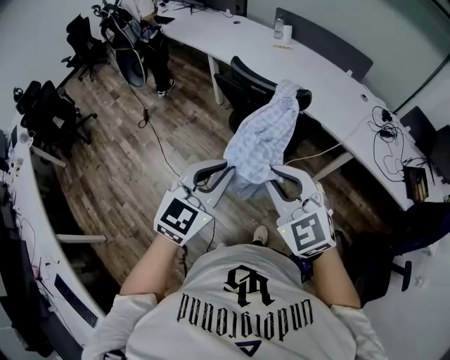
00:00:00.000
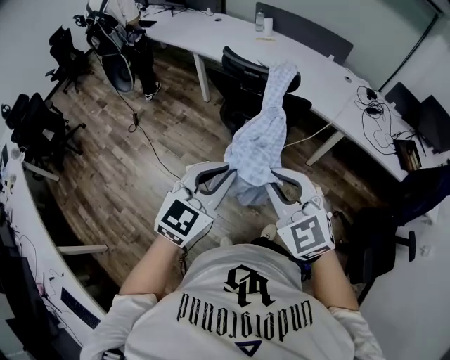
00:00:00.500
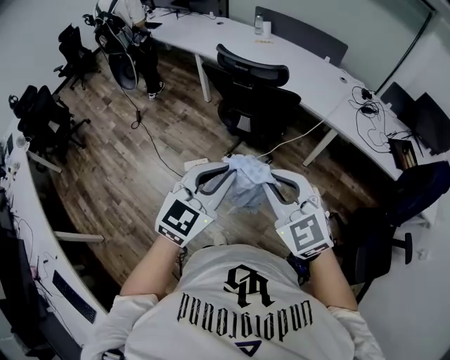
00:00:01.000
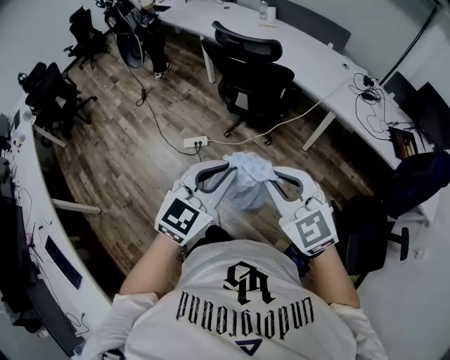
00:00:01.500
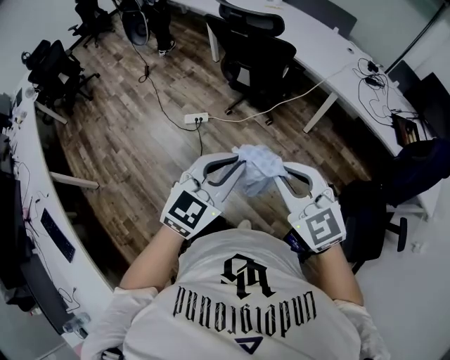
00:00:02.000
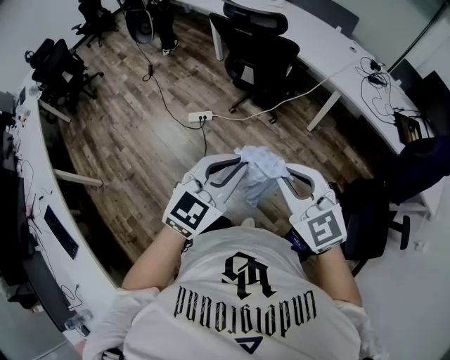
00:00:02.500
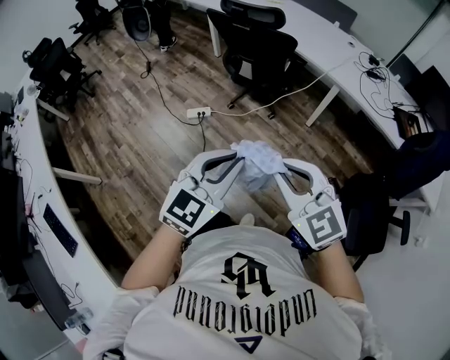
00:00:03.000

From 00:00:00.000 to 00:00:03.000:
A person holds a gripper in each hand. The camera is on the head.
From 00:00:00.000 to 00:00:01.500: The grippers both shift backward and to the right by some 25 cm.
From 00:00:01.500 to 00:00:03.000: Both grippers move backward, roughly 10 cm.

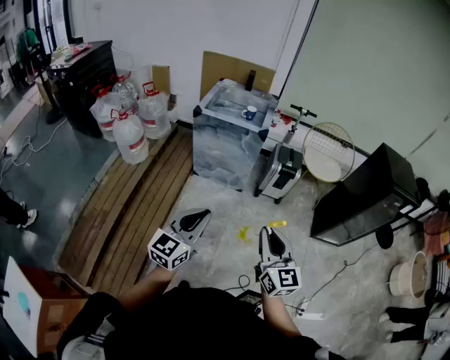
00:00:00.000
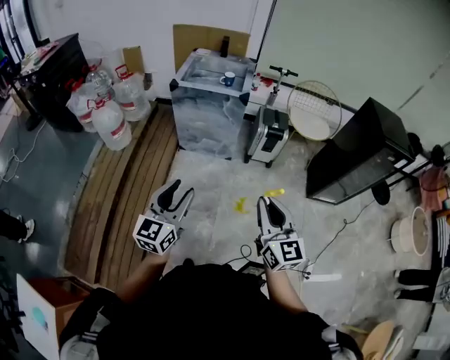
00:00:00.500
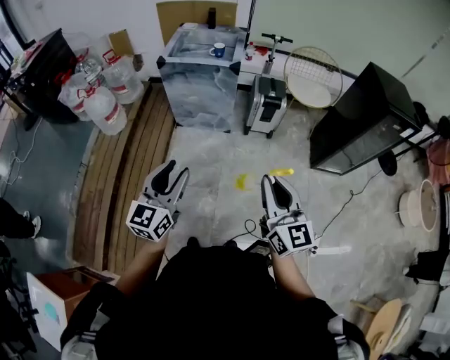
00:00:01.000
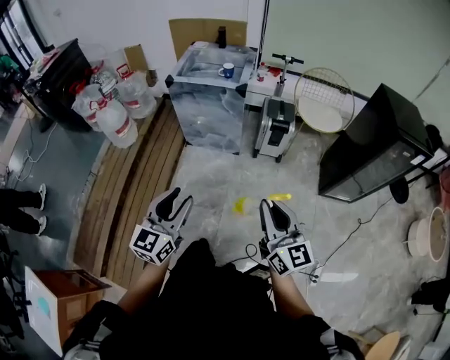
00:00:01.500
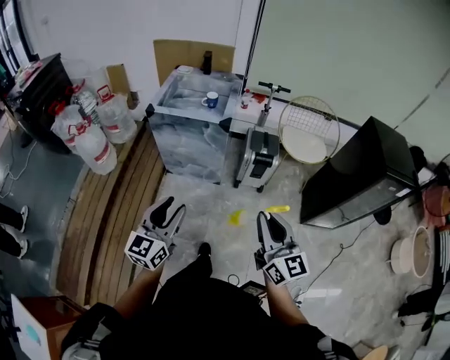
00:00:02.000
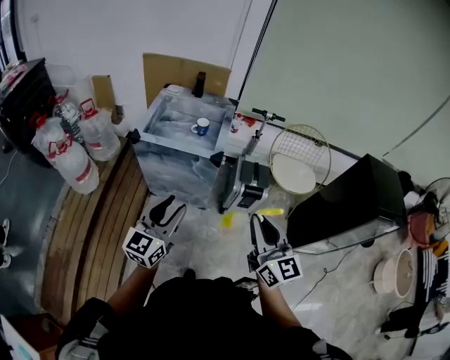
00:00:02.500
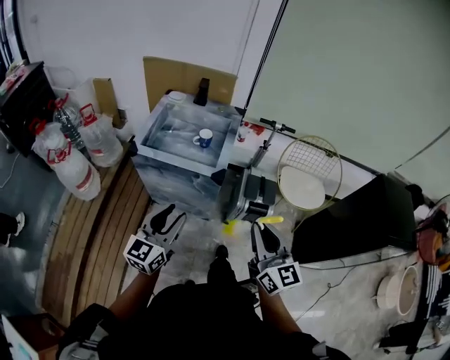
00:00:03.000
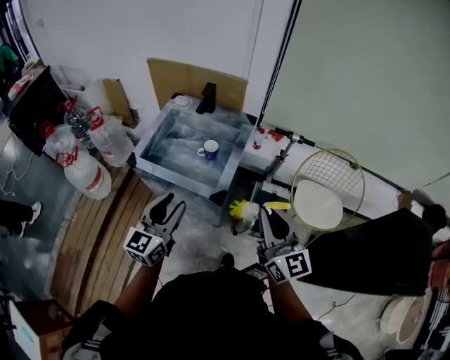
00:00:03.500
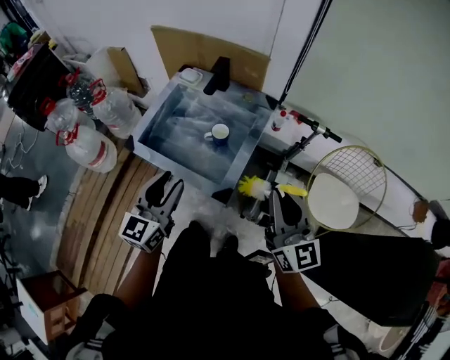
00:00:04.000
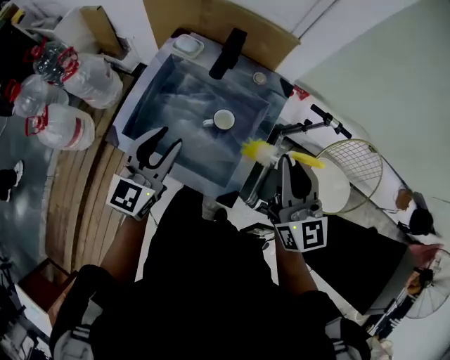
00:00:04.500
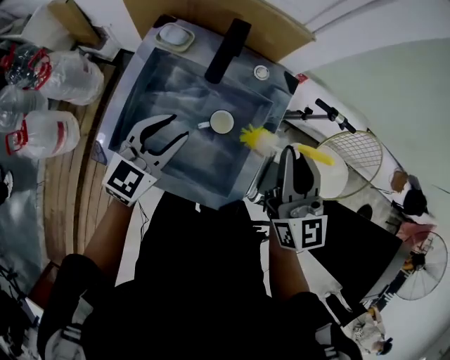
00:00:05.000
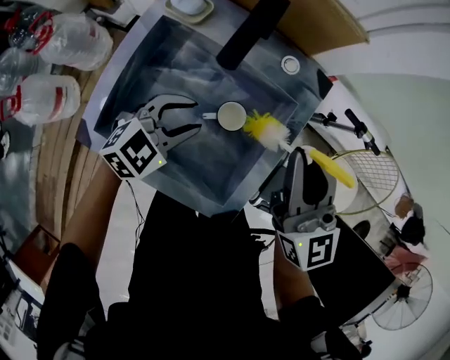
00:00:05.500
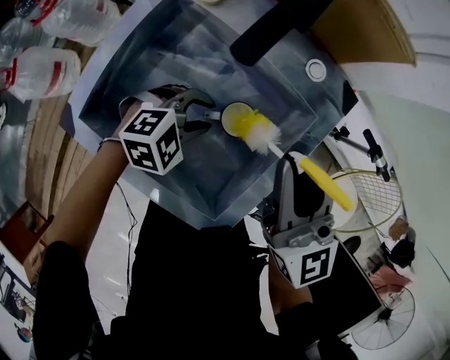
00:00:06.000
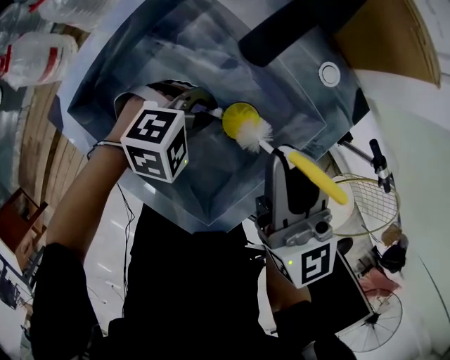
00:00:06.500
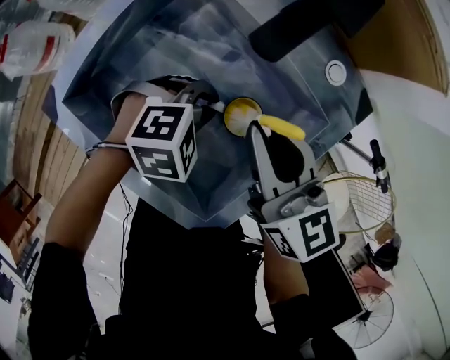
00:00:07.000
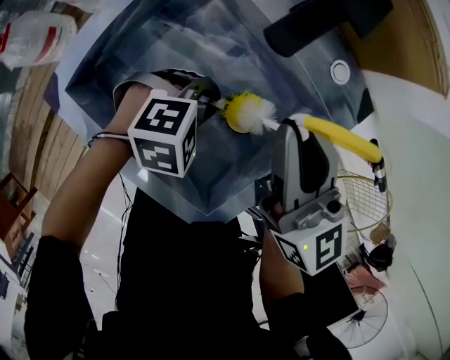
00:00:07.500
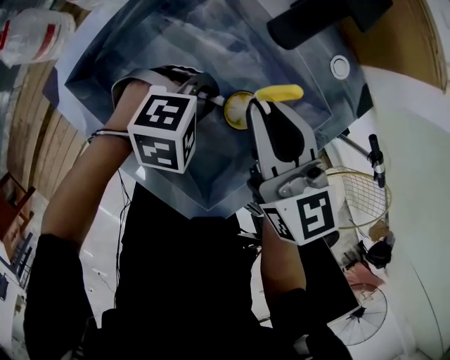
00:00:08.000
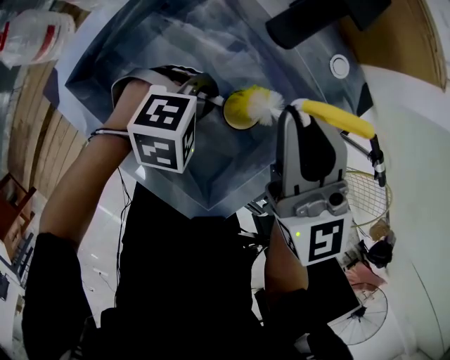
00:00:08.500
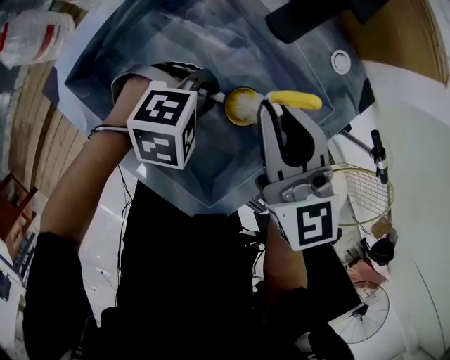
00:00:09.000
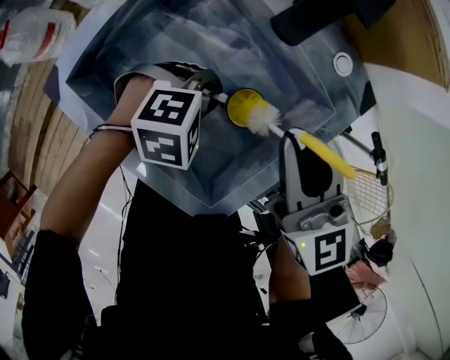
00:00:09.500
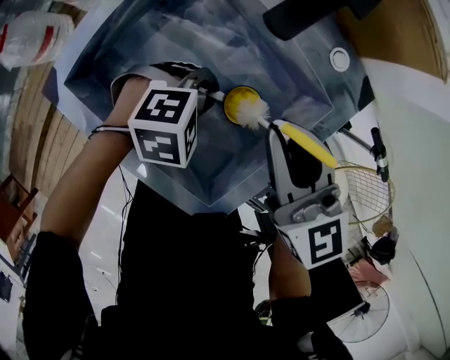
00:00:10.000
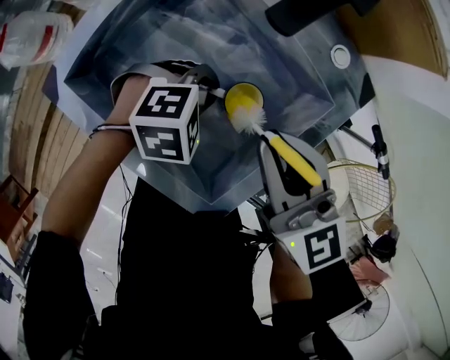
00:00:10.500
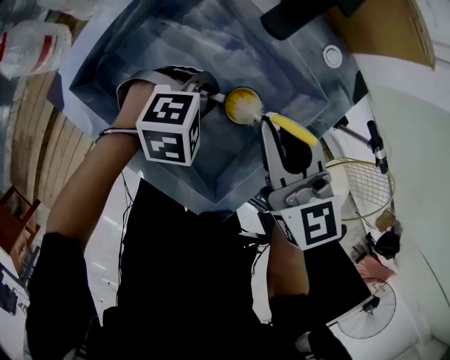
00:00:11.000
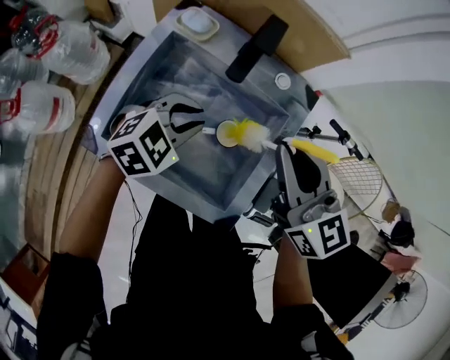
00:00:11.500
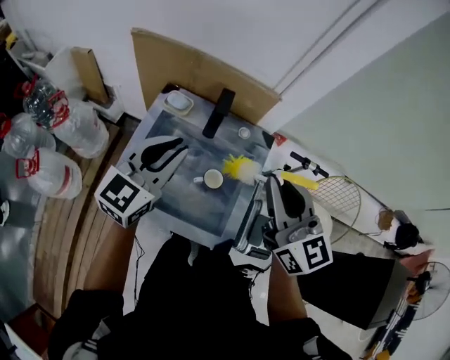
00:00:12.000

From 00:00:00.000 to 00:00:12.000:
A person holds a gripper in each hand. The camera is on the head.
From 00:00:00.000 to 00:00:02.000: The right gripper goes approximately 20 cm forward and to the right. Meanwhile the left gripper shifts some 20 cm forward, and opens.
From 00:00:02.000 to 00:00:04.000: The pair of grippers is taken forward, roughly 60 cm.
From 00:00:04.000 to 00:00:06.000: The right gripper heads forward, to the left and downward, covering some 35 cm, while the left gripper travels downward and forward by about 40 cm, and tips its fingers downward by about 40 degrees.
From 00:00:06.000 to 00:00:08.000: The right gripper goes up and down, approximately 10 cm each way, reversing 2 times, and swivels about 20 degrees. Meanwhile the left gripper closes.
From 00:00:10.000 to 00:00:12.000: Both grippers move upward, approximately 30 cm. The right gripper rotates approximately 30 degrees. The left gripper tips its fingers upward by some 50 degrees.

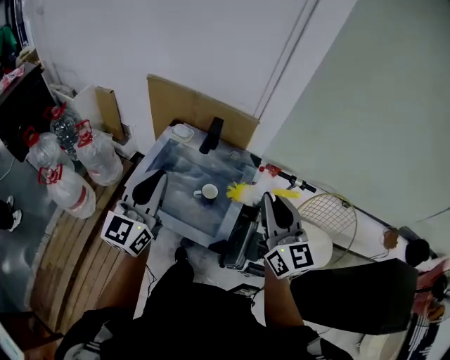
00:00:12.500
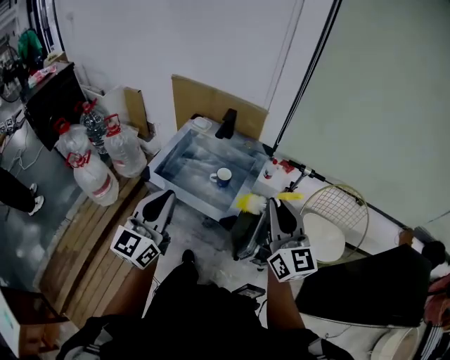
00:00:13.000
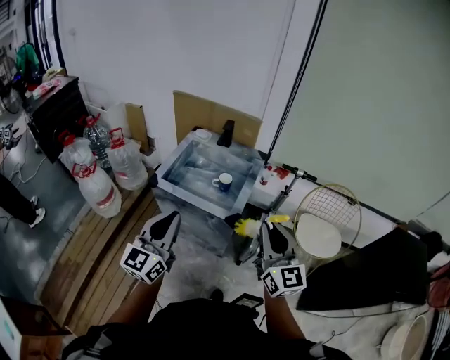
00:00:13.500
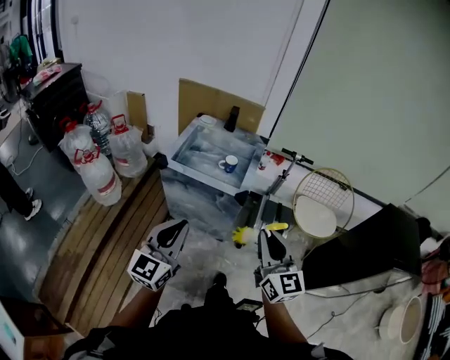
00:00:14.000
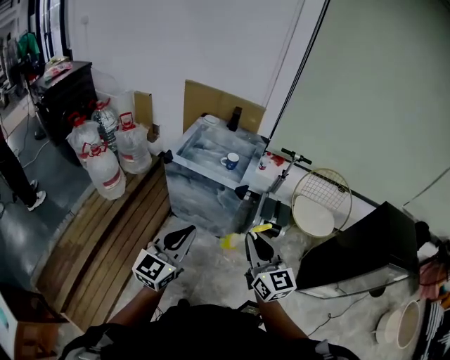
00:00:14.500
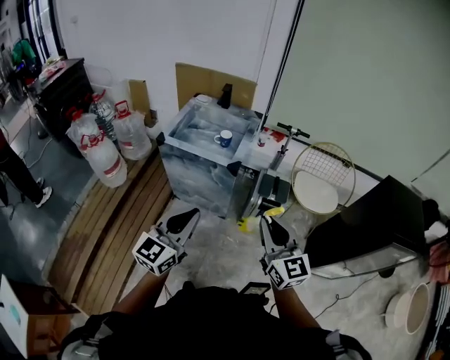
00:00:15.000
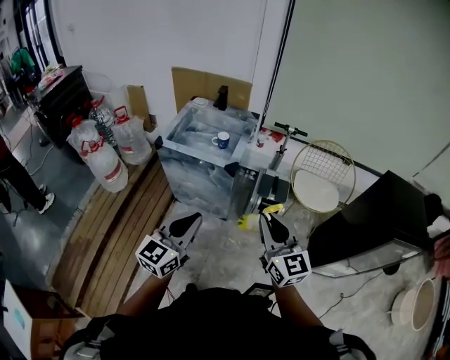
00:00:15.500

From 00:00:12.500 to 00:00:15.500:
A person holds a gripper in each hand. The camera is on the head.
From 00:00:12.500 to 00:00:14.000: The pair of grippers is taken backward, roughly 40 cm.
From 00:00:14.000 to 00:00:15.500: Both grippers move to the right and backward, about 15 cm.

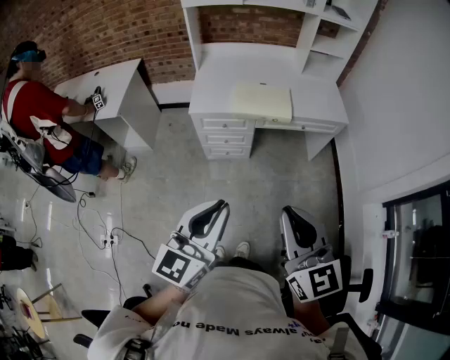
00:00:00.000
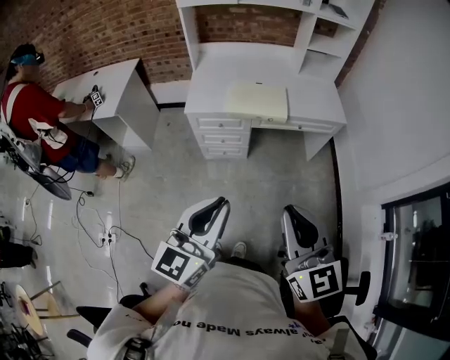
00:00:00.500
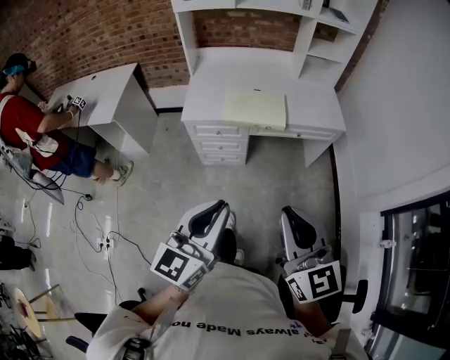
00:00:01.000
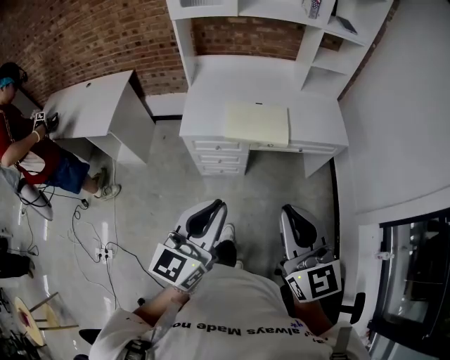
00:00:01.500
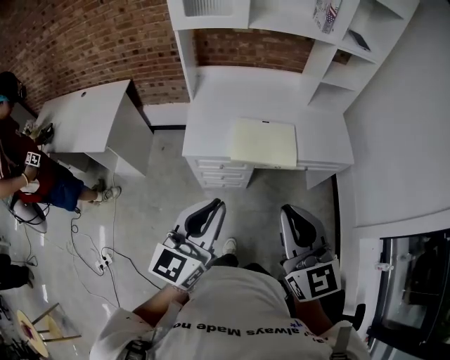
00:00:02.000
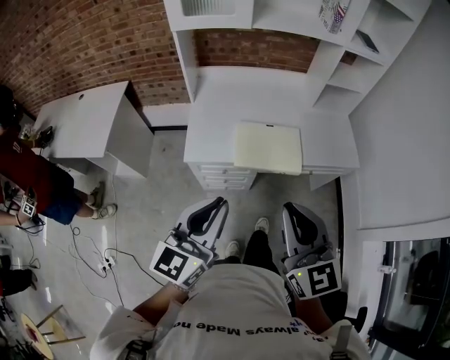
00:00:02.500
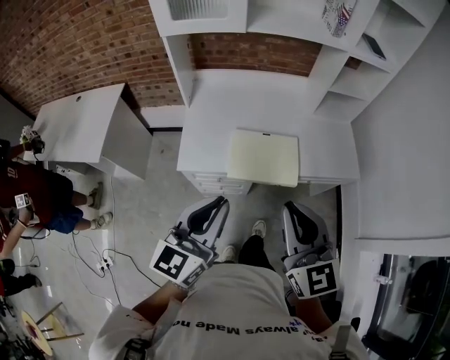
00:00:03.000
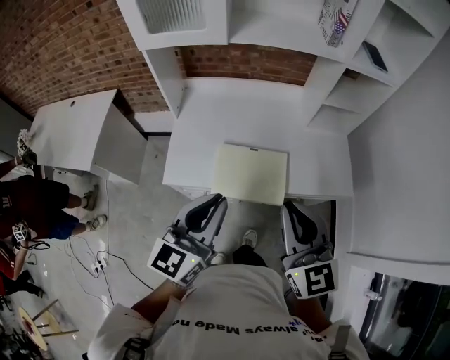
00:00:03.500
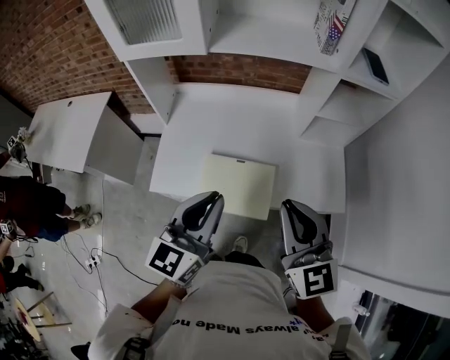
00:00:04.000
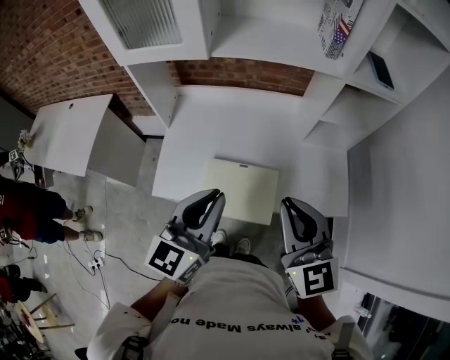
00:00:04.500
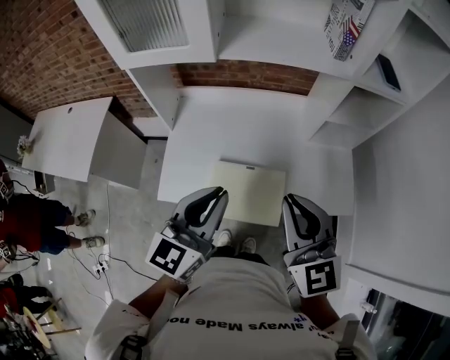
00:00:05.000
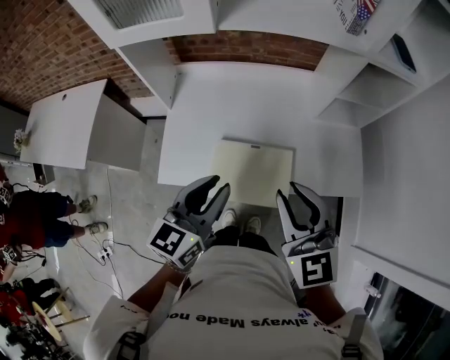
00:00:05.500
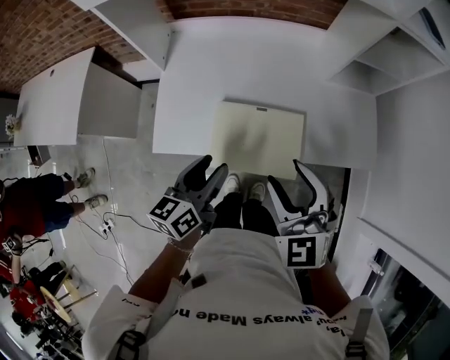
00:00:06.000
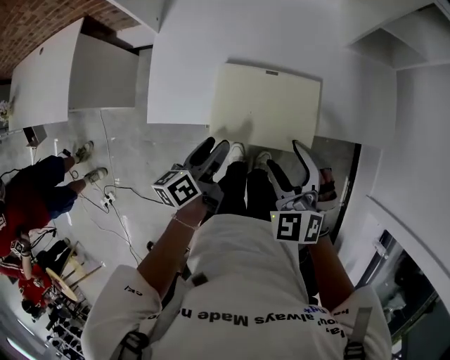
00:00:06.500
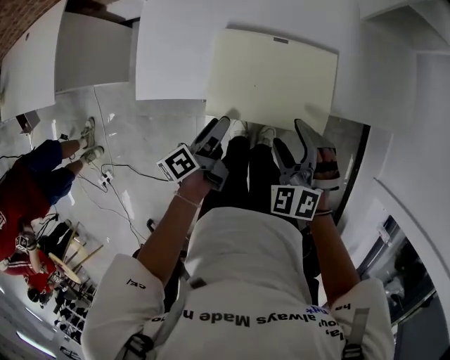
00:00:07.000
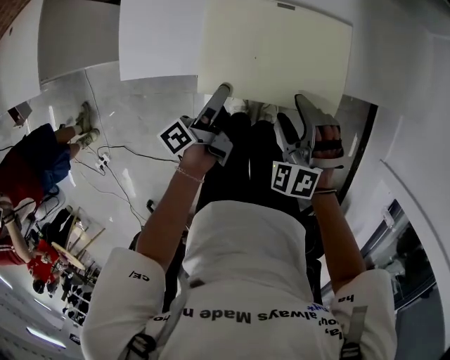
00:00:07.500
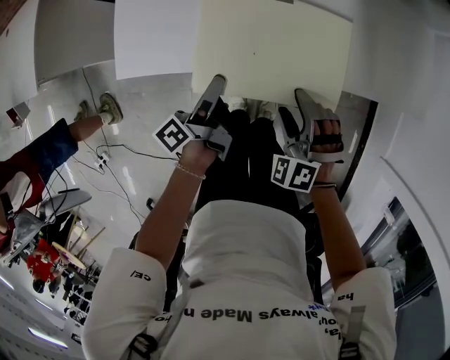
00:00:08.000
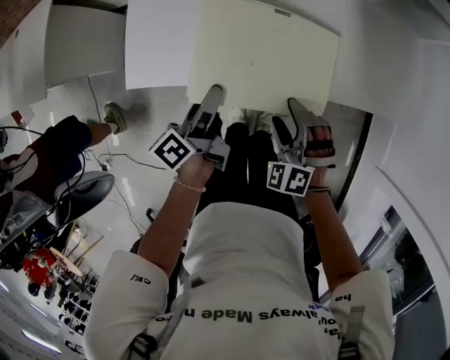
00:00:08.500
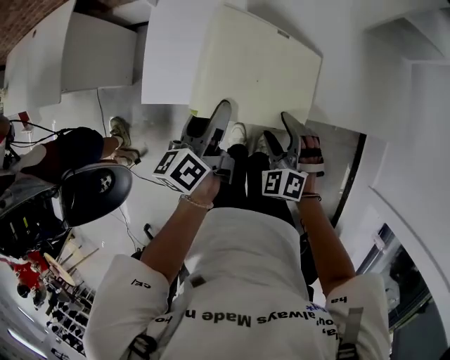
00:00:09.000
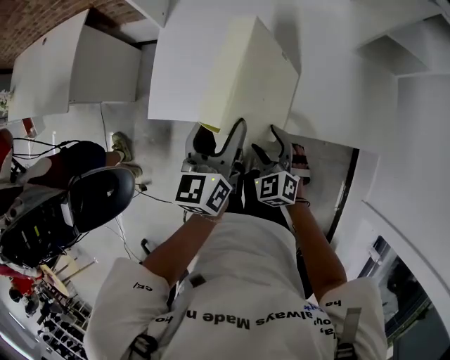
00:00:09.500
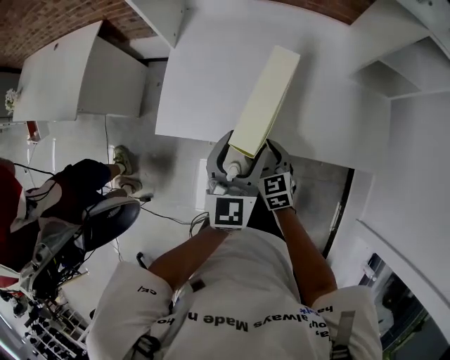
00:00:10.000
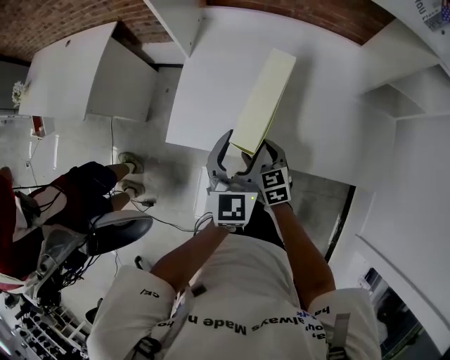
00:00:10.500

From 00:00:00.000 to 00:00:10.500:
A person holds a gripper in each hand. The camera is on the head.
From 00:00:00.000 to 00:00:02.000: Both grippers move forward, roughly 25 cm.
From 00:00:02.000 to 00:00:04.000: Both grippers travel together forward and to the right, approximately 35 cm.
From 00:00:04.000 to 00:00:06.500: Both grippers travel together downward, about 30 cm. The right gripper tilts its fingers some 30 degrees downward, and opens its fingers. Meanwhile the left gripper rotates around the line of its fingers by approximately 50 degrees, counterclockwise from behind, and opens its fingers.
From 00:00:06.500 to 00:00:08.500: The right gripper travels downward by some 15 cm, and swivels roughly 20 degrees. The left gripper moves downward, some 5 cm, and changes its angle by approximately 20 degrees.
From 00:00:08.500 to 00:00:10.500: The left gripper is displaced upward by some 15 cm, and rotates around the line of its fingers by approximately 70 degrees, clockwise from behind; the right gripper shifts about 15 cm forward and to the left, and rotates around the line of its fingers by roughly 50 degrees, clockwise from behind.
